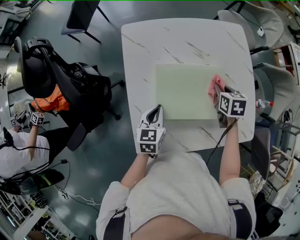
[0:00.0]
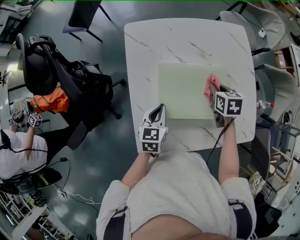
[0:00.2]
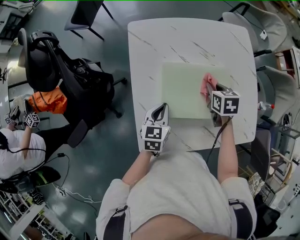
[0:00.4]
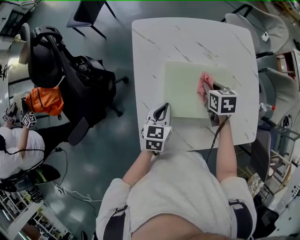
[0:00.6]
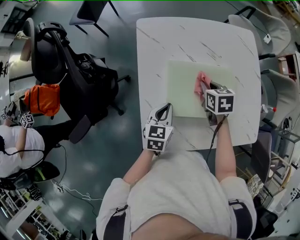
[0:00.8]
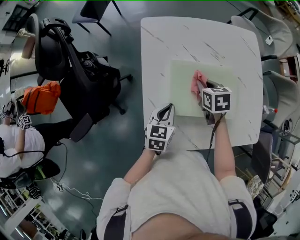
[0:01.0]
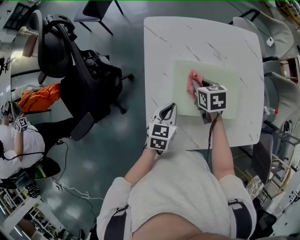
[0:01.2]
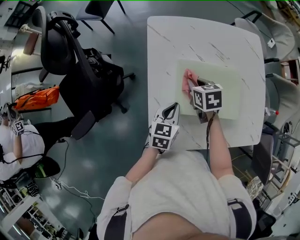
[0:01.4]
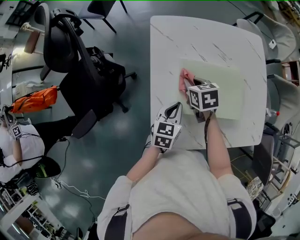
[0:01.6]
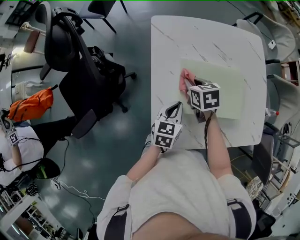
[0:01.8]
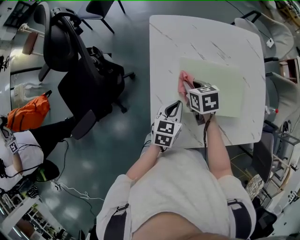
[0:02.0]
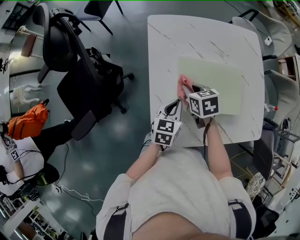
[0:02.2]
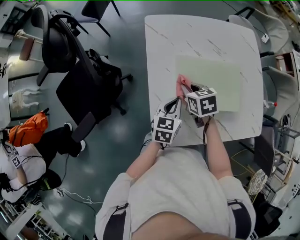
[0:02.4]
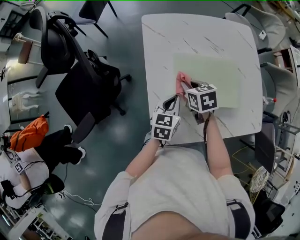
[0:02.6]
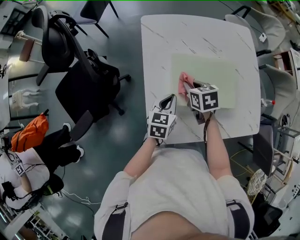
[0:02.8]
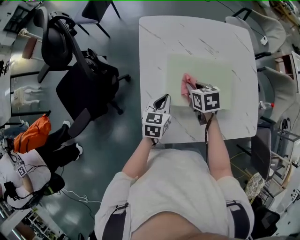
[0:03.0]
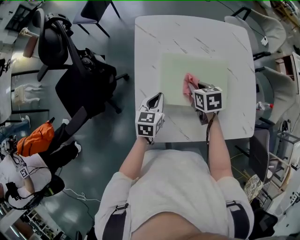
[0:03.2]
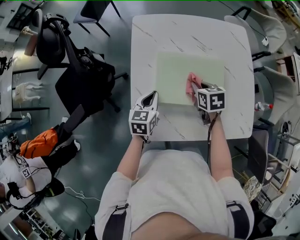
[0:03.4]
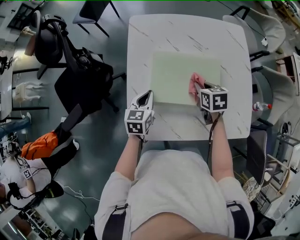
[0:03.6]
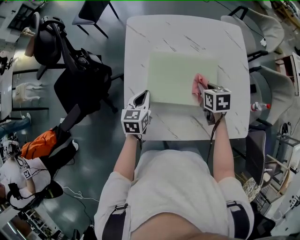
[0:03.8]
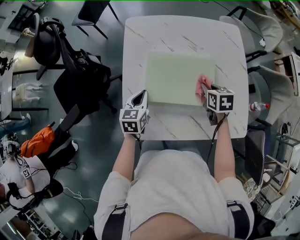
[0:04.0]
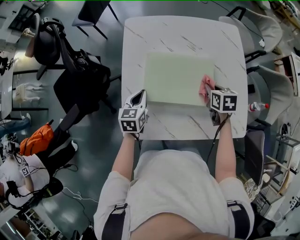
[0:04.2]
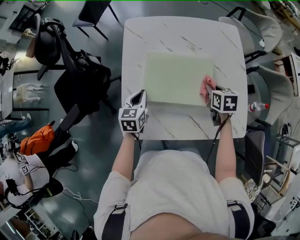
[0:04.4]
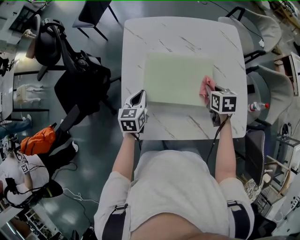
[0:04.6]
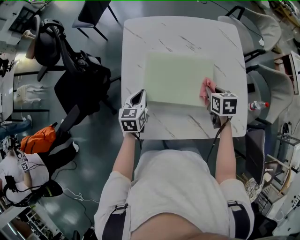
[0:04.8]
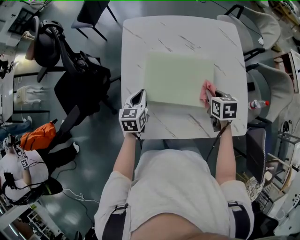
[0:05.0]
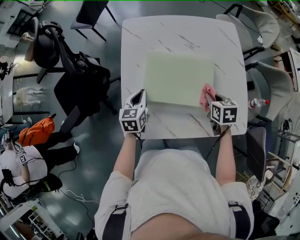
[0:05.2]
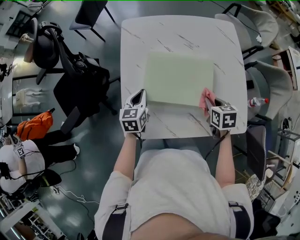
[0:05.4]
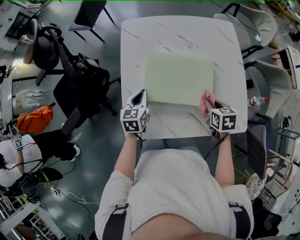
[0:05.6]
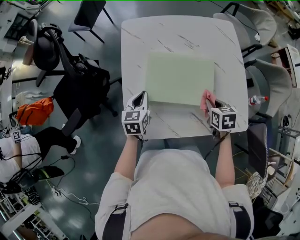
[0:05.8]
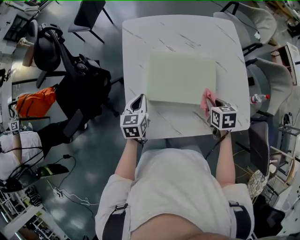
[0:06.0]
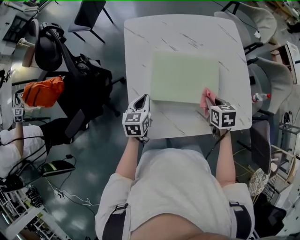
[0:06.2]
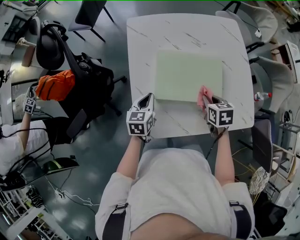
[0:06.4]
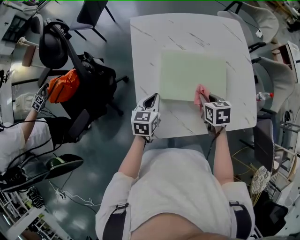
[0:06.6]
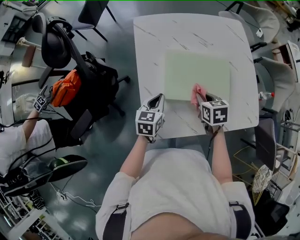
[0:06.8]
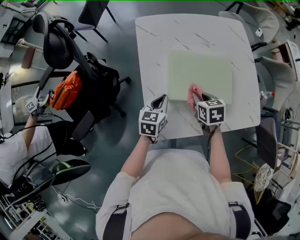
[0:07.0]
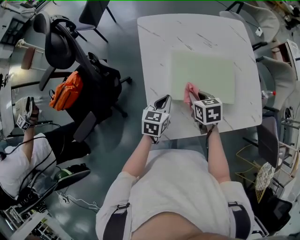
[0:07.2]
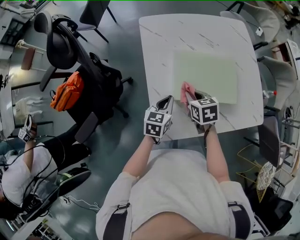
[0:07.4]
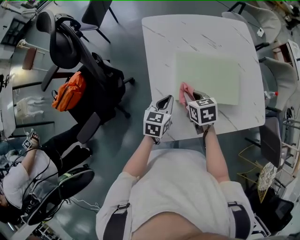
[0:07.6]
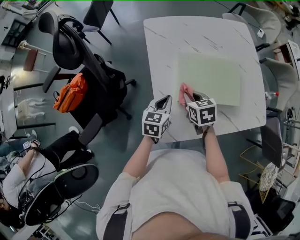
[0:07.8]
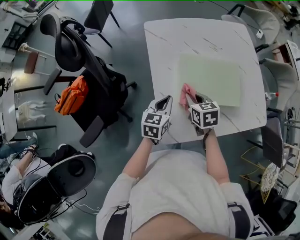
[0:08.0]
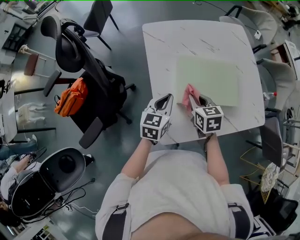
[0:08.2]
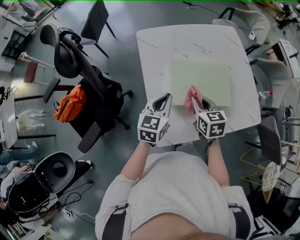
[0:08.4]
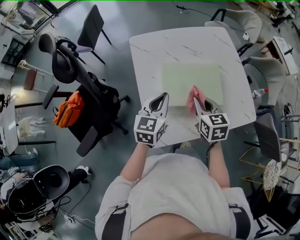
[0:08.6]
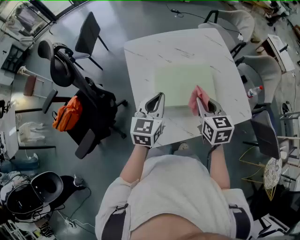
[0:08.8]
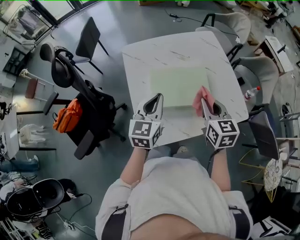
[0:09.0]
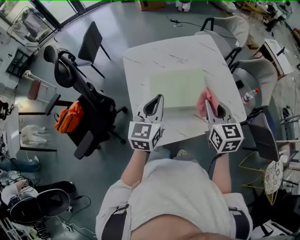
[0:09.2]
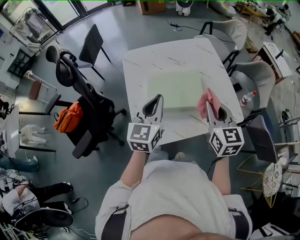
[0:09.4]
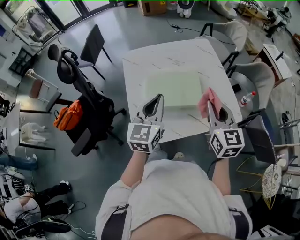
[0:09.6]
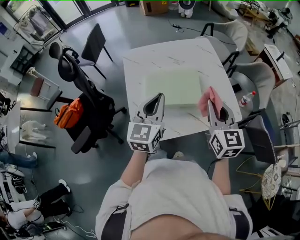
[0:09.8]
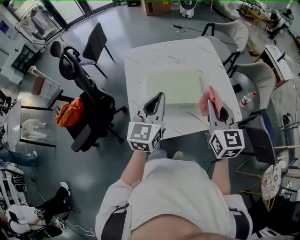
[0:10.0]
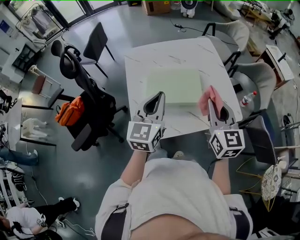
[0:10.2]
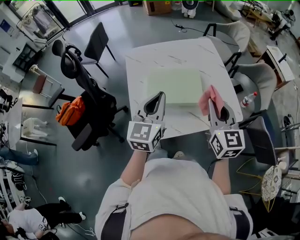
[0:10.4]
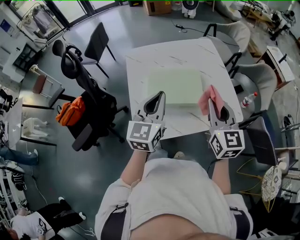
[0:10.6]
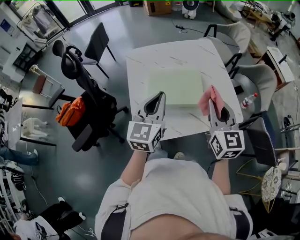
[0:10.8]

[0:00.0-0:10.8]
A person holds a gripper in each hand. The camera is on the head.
0:00.0 to 0:01.6: The right gripper travels to the left by some 25 cm.
0:01.6 to 0:03.0: The right gripper is displaced to the right and backward by about 10 cm.
0:03.0 to 0:04.6: The right gripper is displaced to the right by about 20 cm.
0:04.6 to 0:06.2: The right gripper shifts some 10 cm backward.
0:06.2 to 0:07.8: The right gripper heads to the left, covering roughly 25 cm.
0:07.8 to 0:09.2: The left gripper travels upward and to the right by approximately 25 cm, and turns by some 30 degrees; the right gripper goes approximately 30 cm to the right and upward, and points its fingers about 30 degrees further upward.
0:09.2 to 0:10.8: The left gripper moves approximately 5 cm. The right gripper goes approximately 5 cm upward.

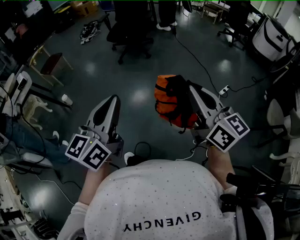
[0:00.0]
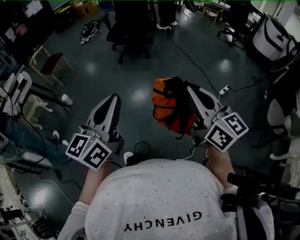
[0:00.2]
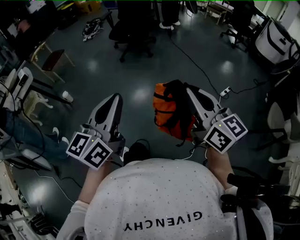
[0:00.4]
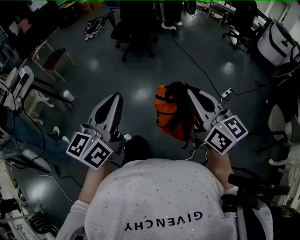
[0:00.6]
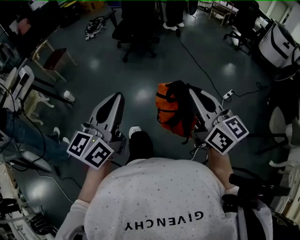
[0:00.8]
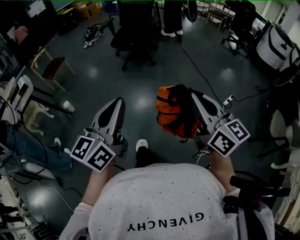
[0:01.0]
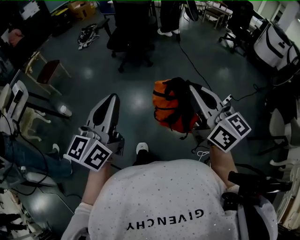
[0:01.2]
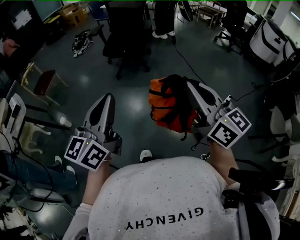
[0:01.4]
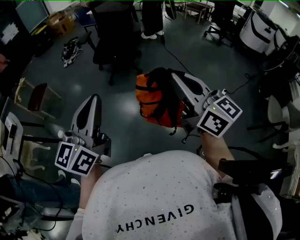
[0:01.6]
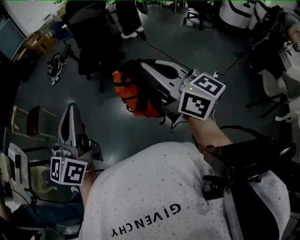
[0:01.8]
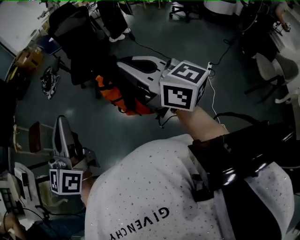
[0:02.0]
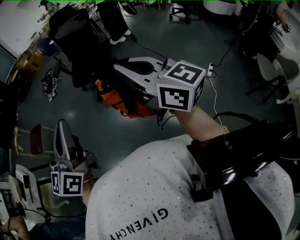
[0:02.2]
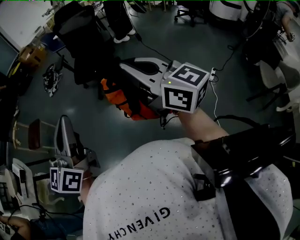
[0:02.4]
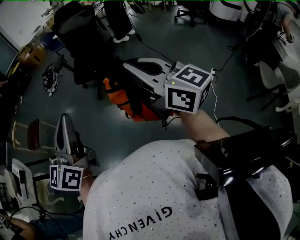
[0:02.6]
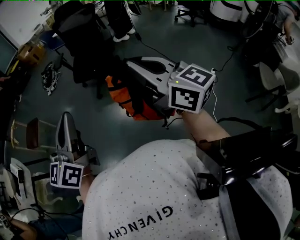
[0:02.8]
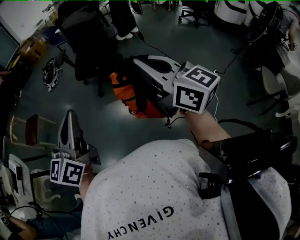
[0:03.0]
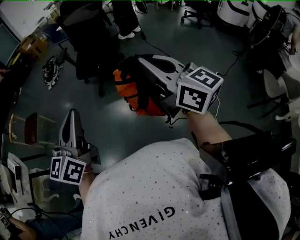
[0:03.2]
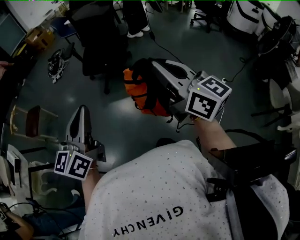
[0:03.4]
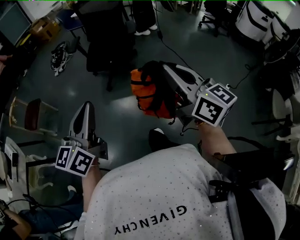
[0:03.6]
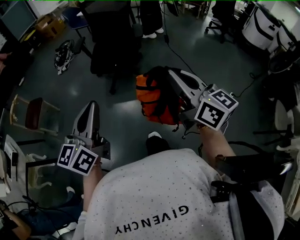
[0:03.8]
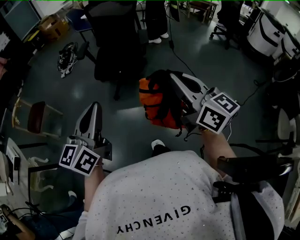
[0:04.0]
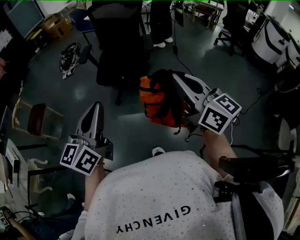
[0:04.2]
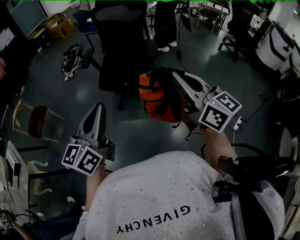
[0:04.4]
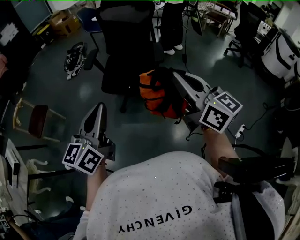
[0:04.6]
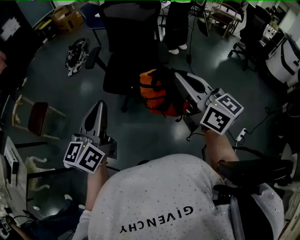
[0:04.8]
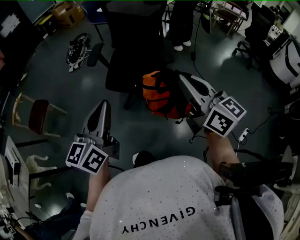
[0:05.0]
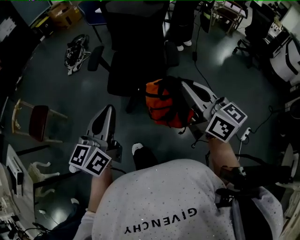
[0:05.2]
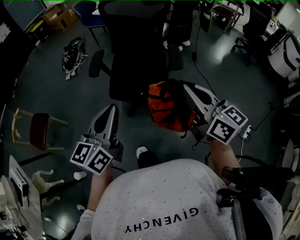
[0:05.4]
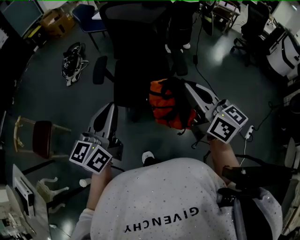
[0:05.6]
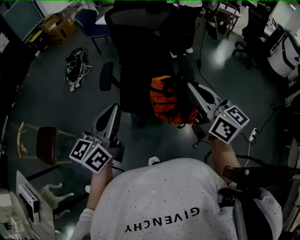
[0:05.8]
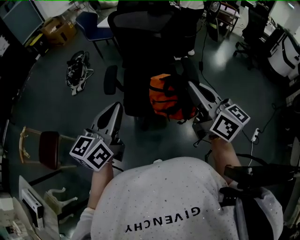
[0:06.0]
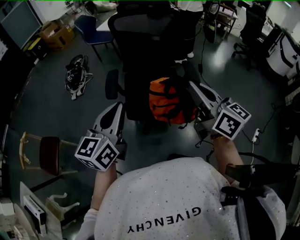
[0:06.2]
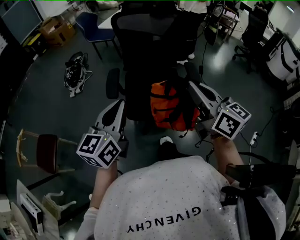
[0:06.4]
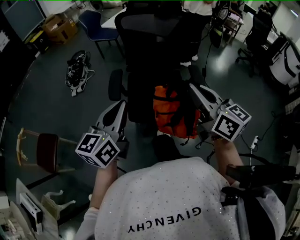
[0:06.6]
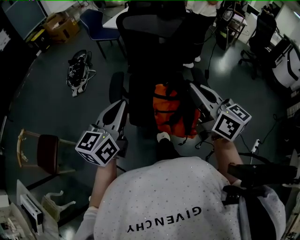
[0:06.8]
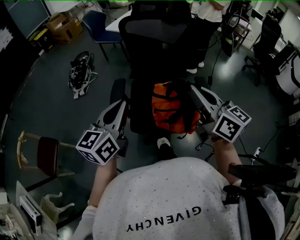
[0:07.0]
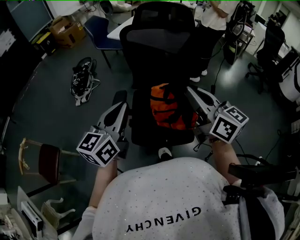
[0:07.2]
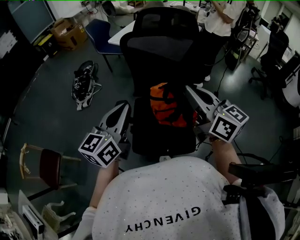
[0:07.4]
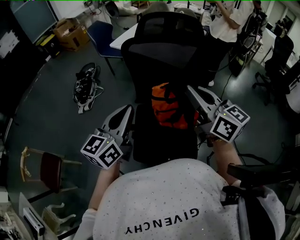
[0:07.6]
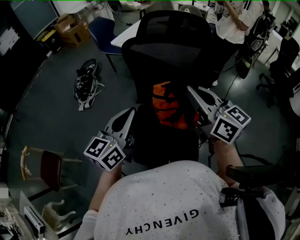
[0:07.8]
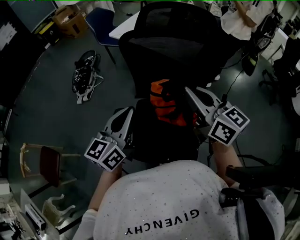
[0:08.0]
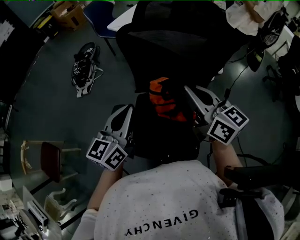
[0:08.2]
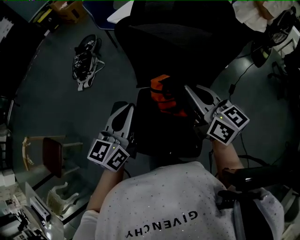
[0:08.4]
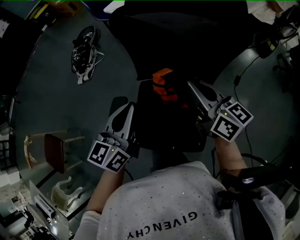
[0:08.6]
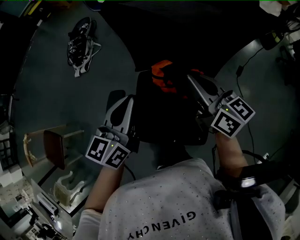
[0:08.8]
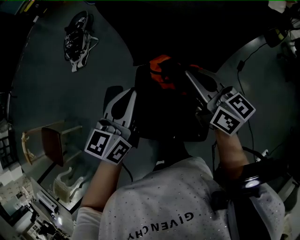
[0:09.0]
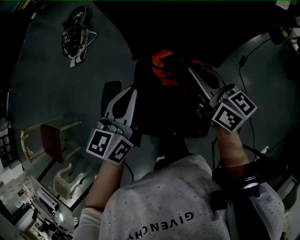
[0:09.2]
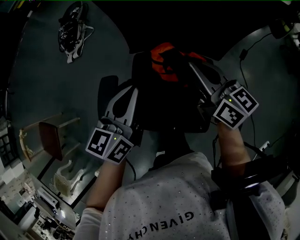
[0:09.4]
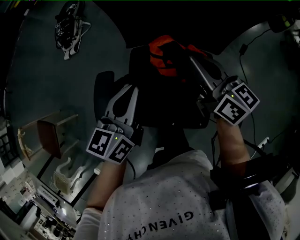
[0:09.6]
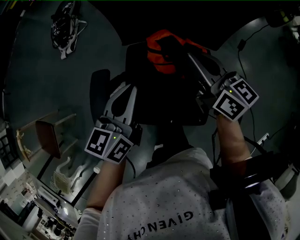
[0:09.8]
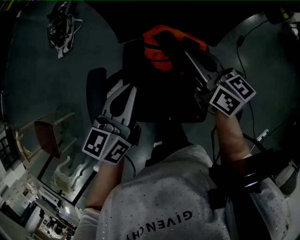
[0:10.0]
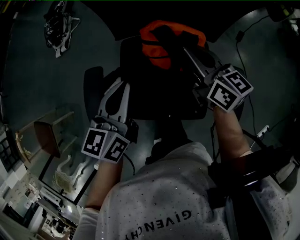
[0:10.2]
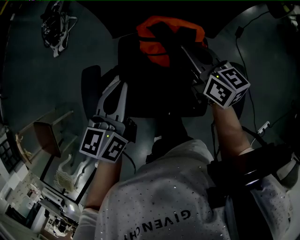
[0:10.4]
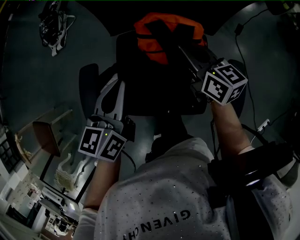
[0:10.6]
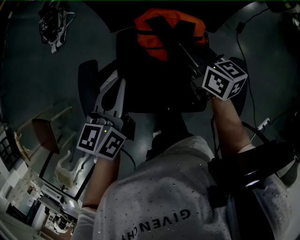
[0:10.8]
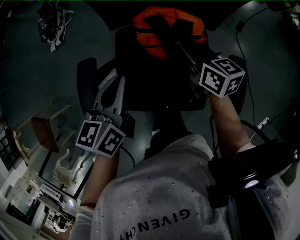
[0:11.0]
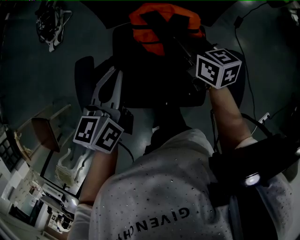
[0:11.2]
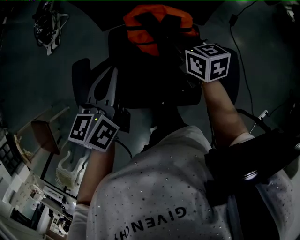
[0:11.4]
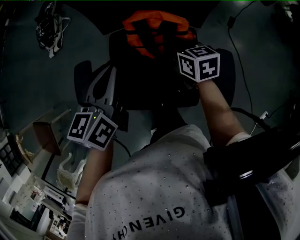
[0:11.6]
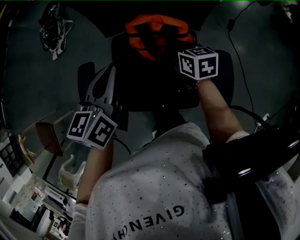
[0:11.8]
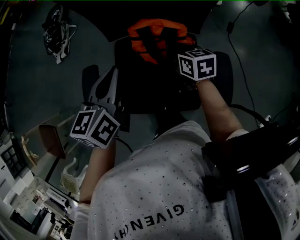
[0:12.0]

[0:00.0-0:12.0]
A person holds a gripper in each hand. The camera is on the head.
0:00.0 to 0:01.6: Both grippers move forward and to the left, some 30 cm.
0:01.6 to 0:03.0: Both grippers travel together forward, some 10 cm.
0:03.0 to 0:04.4: Both grippers travel together forward, roughly 30 cm.
0:04.4 to 0:06.0: The grippers both shift forward and to the left by roughly 35 cm.
0:06.0 to 0:07.6: Both grippers travel together forward, some 35 cm.
0:07.6 to 0:09.0: Both grippers travel together downward and forward, approximately 25 cm.
0:09.0 to 0:10.4: The grippers both shift downward by approximately 10 cm.
0:10.4 to 0:12.0: The right gripper travels downward by some 5 cm, and rotates about 20 degrees.

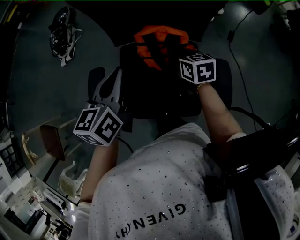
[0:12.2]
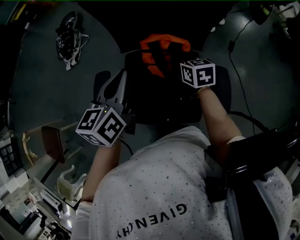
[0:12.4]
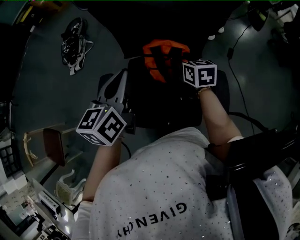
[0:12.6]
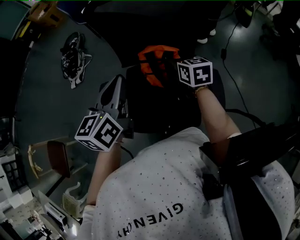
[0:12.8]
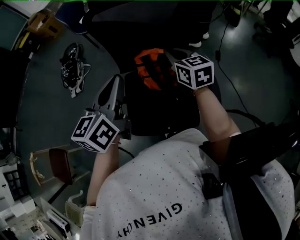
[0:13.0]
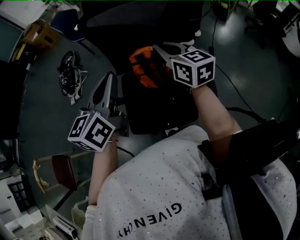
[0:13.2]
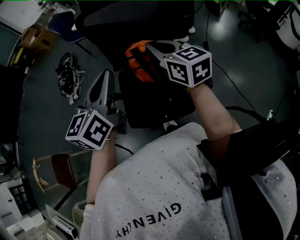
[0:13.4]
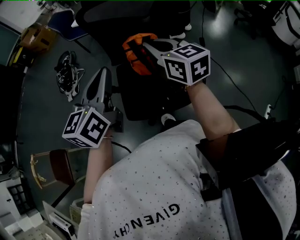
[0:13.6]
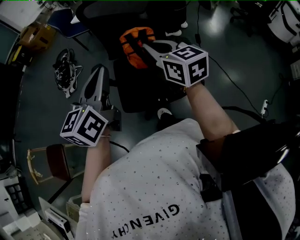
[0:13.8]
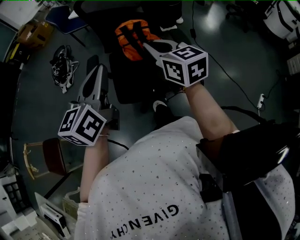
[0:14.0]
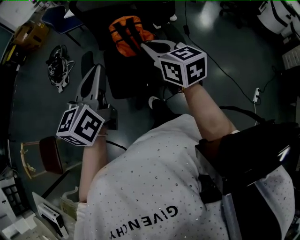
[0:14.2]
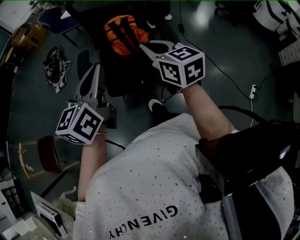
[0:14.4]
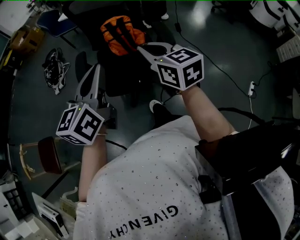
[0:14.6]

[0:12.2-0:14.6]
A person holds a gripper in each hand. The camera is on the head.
0:12.2 to 0:13.4: Both grippers travel together upward and backward, some 25 cm. The right gripper swivels roughly 30 degrees, and opens, then closes again, while the left gripper turns by roughly 20 degrees.
0:13.4 to 0:14.6: The two grippers go some 30 cm backward.
